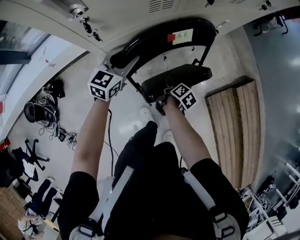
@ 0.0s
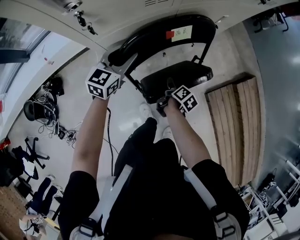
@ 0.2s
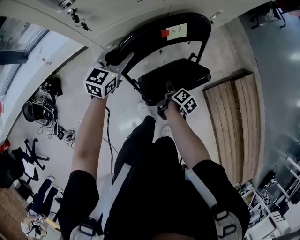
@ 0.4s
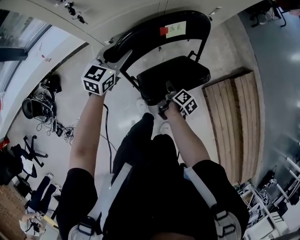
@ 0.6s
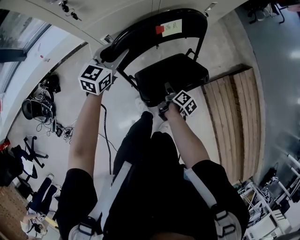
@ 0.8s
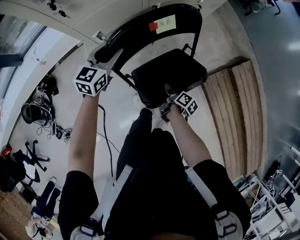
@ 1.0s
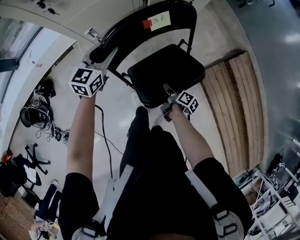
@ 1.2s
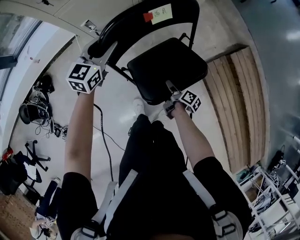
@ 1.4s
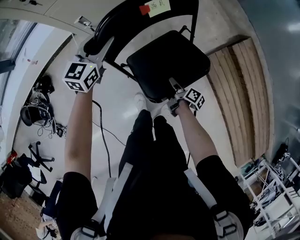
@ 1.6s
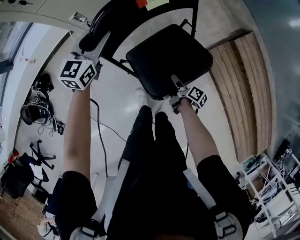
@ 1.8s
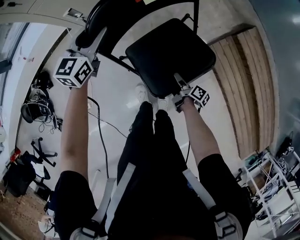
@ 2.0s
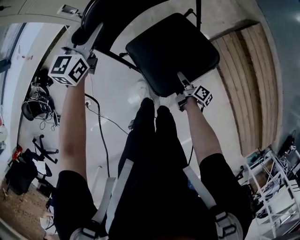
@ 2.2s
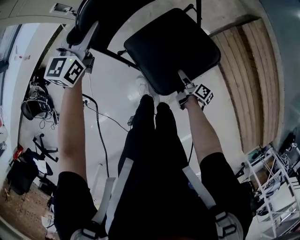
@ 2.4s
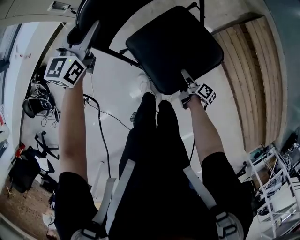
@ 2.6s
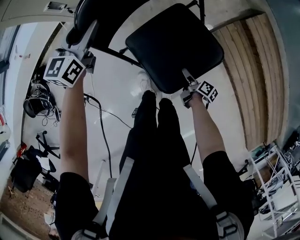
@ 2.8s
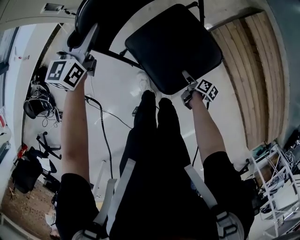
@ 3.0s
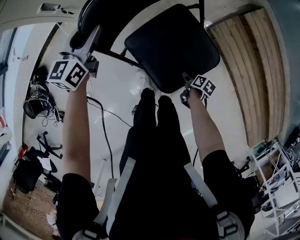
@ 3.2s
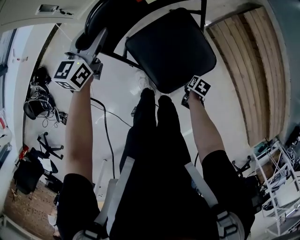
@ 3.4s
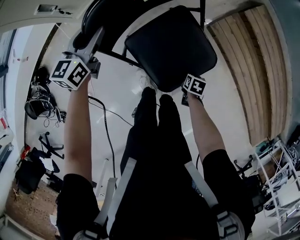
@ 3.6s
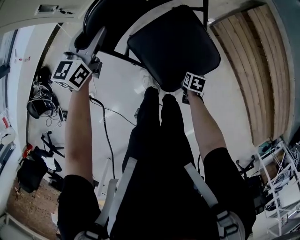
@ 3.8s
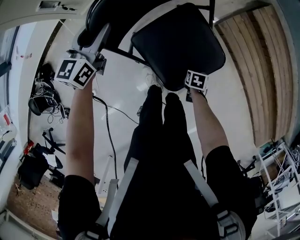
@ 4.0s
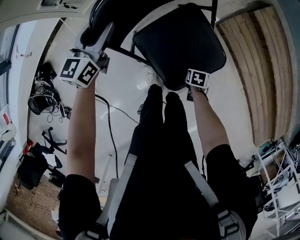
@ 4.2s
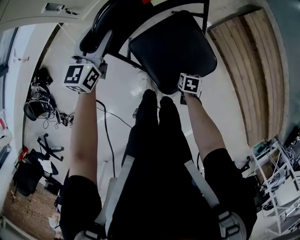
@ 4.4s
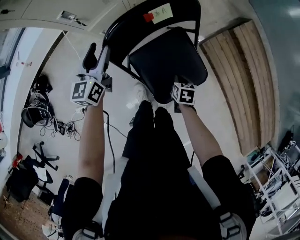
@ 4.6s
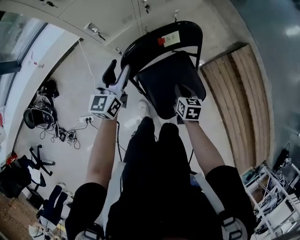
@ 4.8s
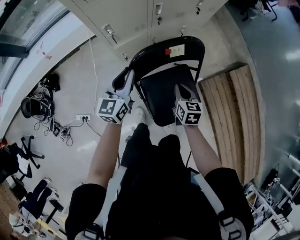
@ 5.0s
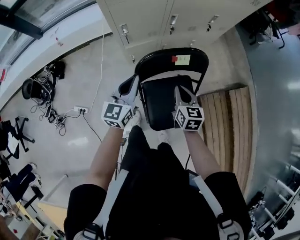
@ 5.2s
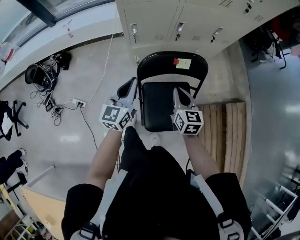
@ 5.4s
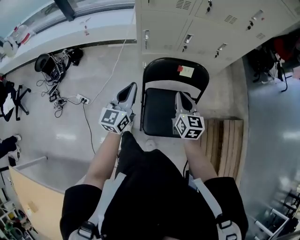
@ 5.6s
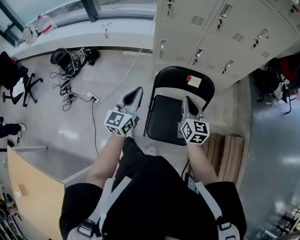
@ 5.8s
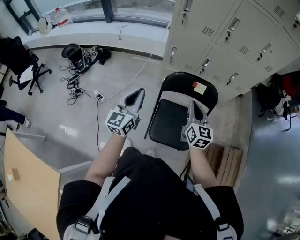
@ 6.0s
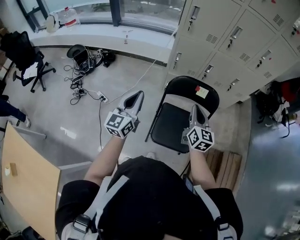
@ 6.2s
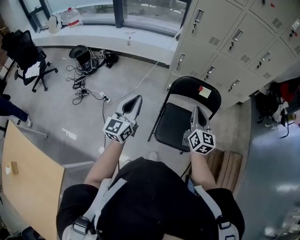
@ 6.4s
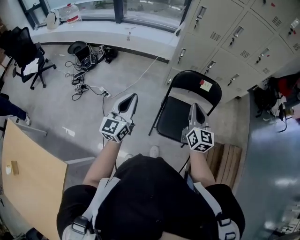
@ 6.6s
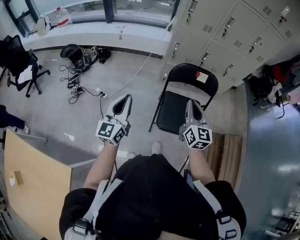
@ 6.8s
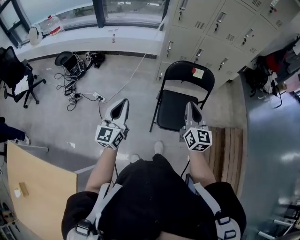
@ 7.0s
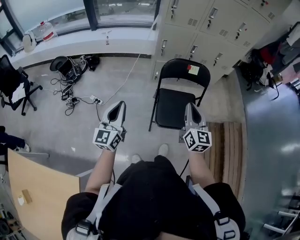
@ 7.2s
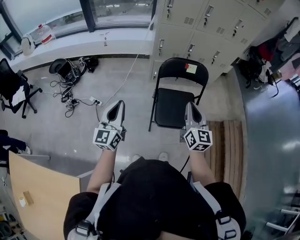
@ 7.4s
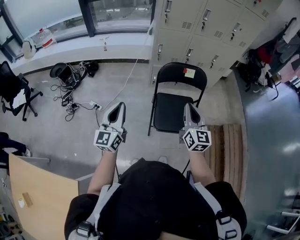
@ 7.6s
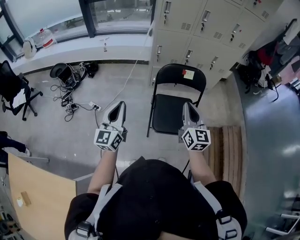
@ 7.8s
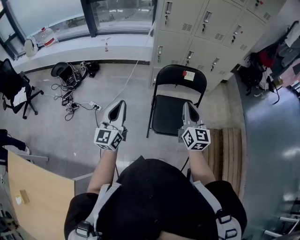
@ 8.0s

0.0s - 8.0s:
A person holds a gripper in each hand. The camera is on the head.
0.0s - 1.6s: The left gripper heads backward and to the right, covering roughly 10 cm. Meanwhile the right gripper moves backward and to the right, roughly 25 cm, and swivels approximately 20 degrees.
1.6s - 3.2s: The left gripper goes some 10 cm downward, while the right gripper moves backward, downward and to the right, some 25 cm, points its fingers approximately 30 degrees further downward, and opens up.
3.2s - 4.8s: The left gripper travels upward by some 10 cm. Meanwhile the right gripper goes approximately 25 cm upward, twists about 50 degrees counterclockwise, seen from behind, and closes its fingers.
4.8s - 6.4s: The right gripper heads upward, covering roughly 35 cm, and angles its fingers upward, by some 40 degrees. The left gripper shifts by roughly 40 cm, swivels approximately 40 degrees, and closes its fingers.
6.4s - 8.0s: Both grippers travel together backward, about 10 cm.

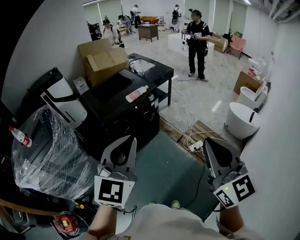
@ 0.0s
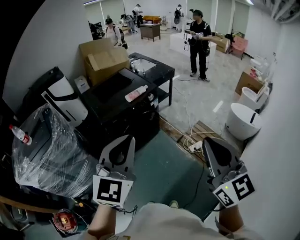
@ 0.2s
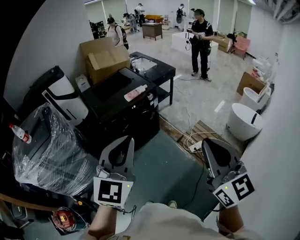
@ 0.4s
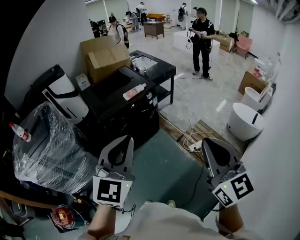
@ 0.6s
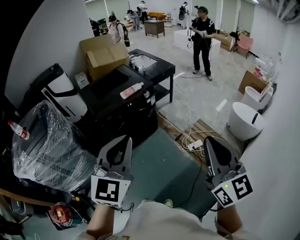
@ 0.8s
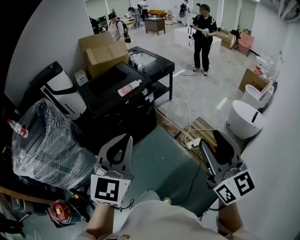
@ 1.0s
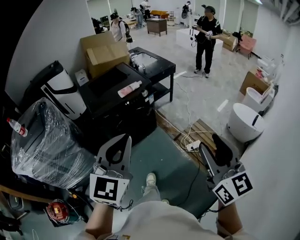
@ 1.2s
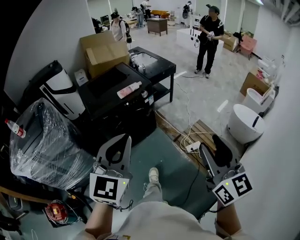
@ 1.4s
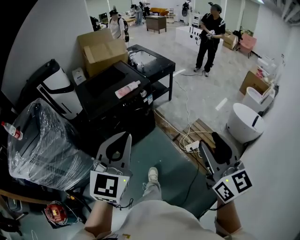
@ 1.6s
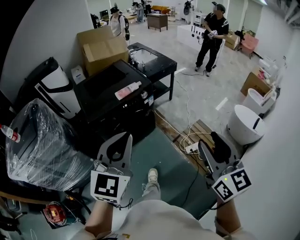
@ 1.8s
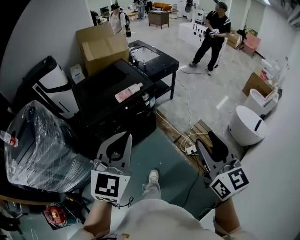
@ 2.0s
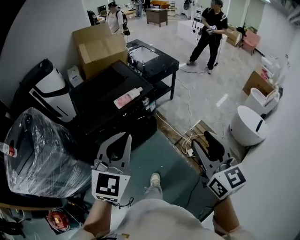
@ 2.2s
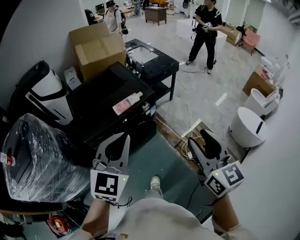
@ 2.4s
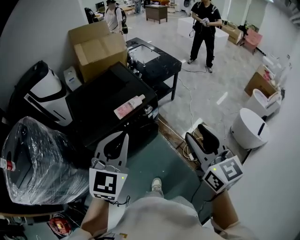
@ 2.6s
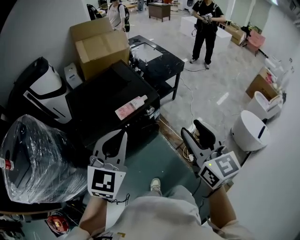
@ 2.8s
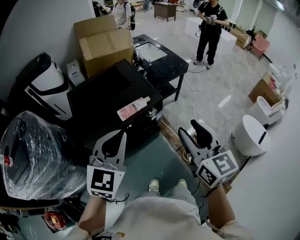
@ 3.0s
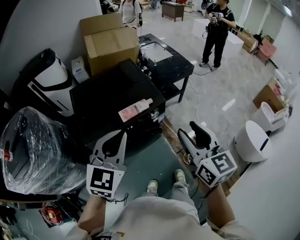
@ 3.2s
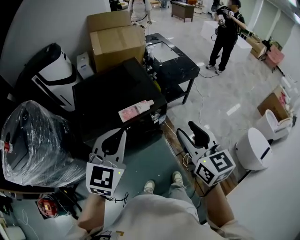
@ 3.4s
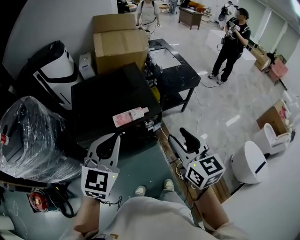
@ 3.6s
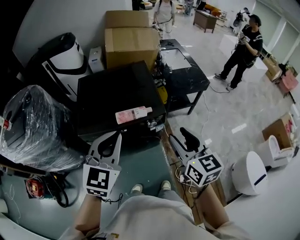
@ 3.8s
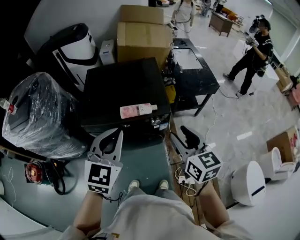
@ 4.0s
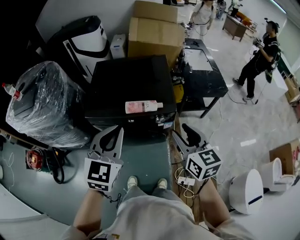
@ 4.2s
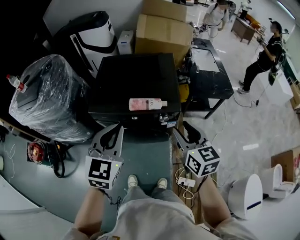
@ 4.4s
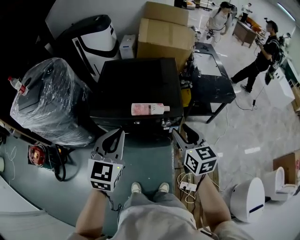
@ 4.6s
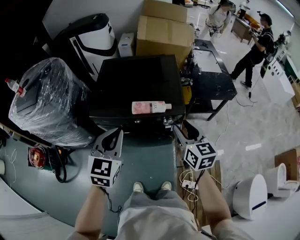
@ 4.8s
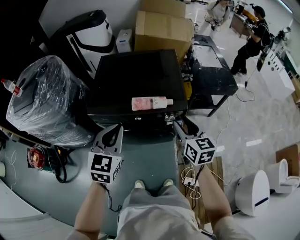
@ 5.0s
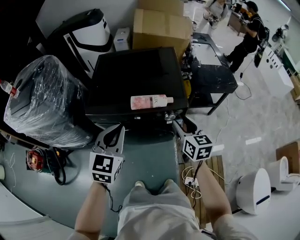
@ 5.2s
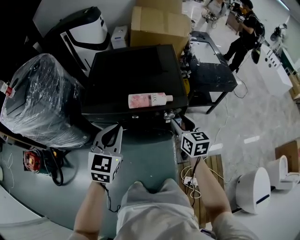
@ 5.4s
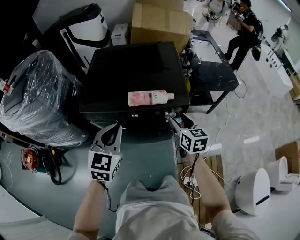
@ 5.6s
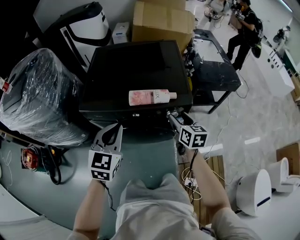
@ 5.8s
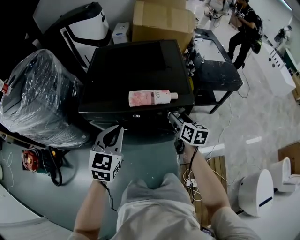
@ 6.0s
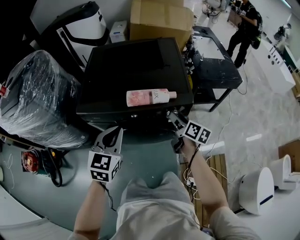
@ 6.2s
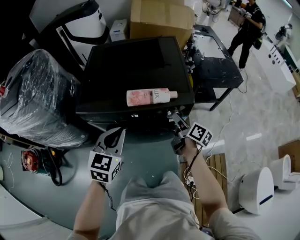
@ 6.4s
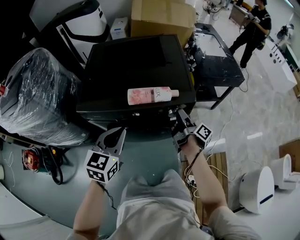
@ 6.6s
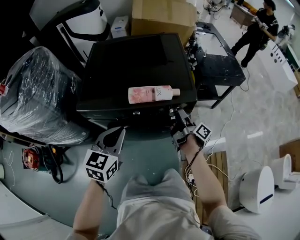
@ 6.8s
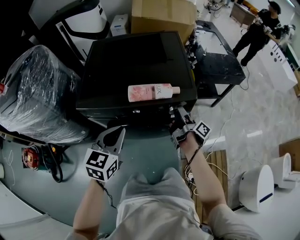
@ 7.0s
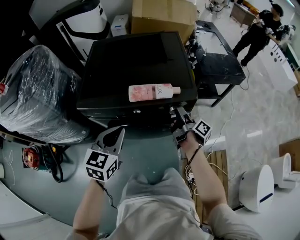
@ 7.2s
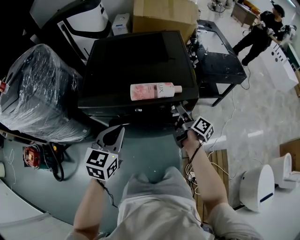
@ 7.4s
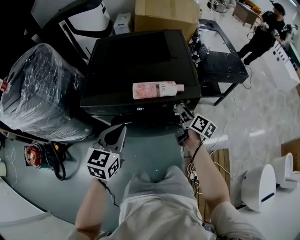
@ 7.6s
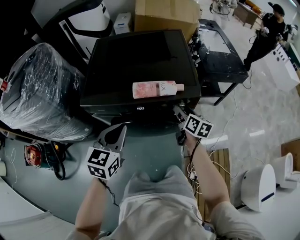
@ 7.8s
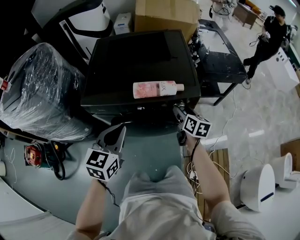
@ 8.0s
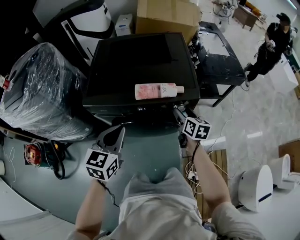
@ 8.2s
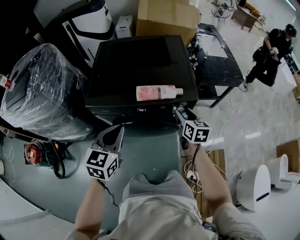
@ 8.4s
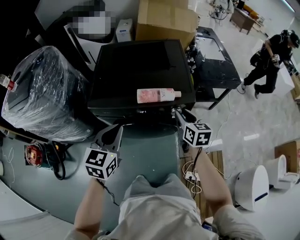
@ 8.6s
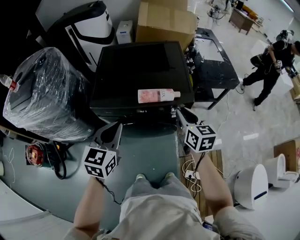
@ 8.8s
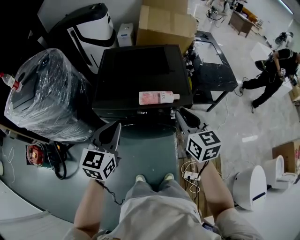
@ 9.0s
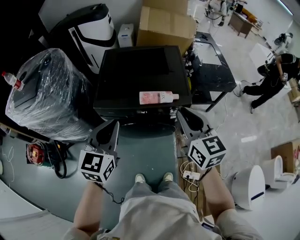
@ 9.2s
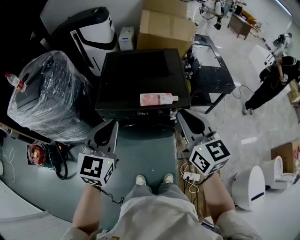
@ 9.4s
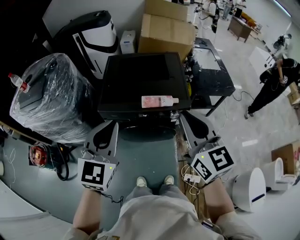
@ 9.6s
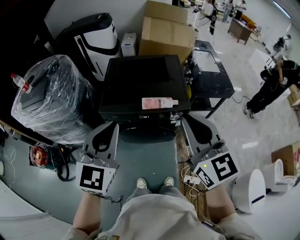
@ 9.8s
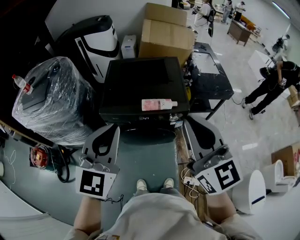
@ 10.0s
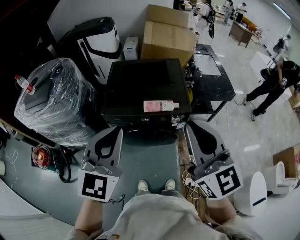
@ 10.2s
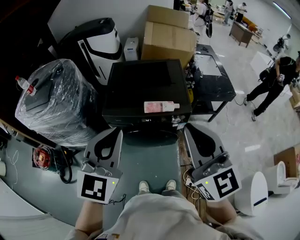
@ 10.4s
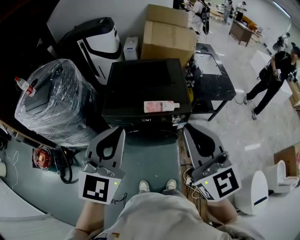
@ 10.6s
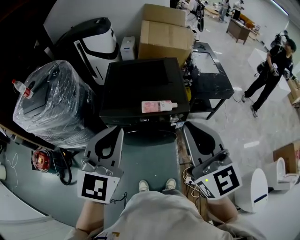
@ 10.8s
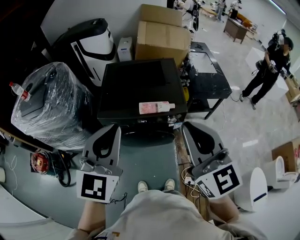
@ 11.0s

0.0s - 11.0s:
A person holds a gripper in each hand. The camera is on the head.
0.0s - 1.6s: The left gripper goes approximately 15 cm to the right and forward; the right gripper shifts about 20 cm to the right, forward and downward, and opens.
1.6s - 3.2s: The two grippers go some 35 cm forward.
3.2s - 4.8s: The left gripper is displaced downward by approximately 10 cm, and turns by some 40 degrees. The right gripper ends up approximately 20 cm from where it was, and turns by approximately 30 degrees.
4.8s - 6.2s: The left gripper heads downward, covering about 15 cm. The right gripper shifts some 25 cm downward and forward, and rolls clockwise, seen from behind, by some 40 degrees.
7.8s - 9.4s: The right gripper travels upward and backward by roughly 40 cm, changes its angle by approximately 40 degrees, and closes up. Meanwhile the left gripper is displaced upward by about 25 cm.
9.4s - 11.0s: The right gripper goes roughly 15 cm upward and backward. The left gripper travels upward by approximately 10 cm.

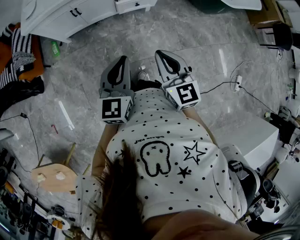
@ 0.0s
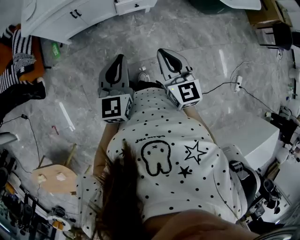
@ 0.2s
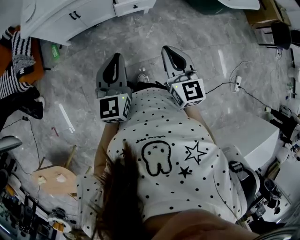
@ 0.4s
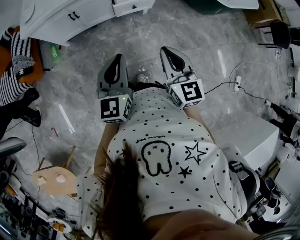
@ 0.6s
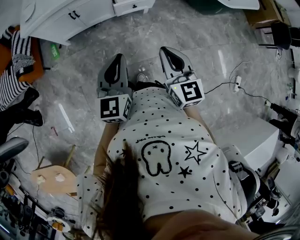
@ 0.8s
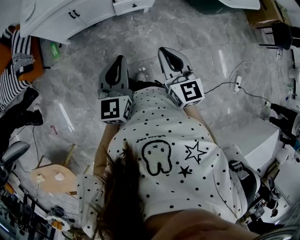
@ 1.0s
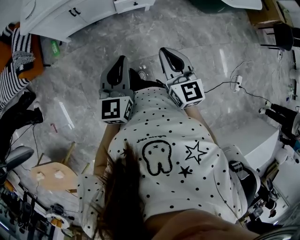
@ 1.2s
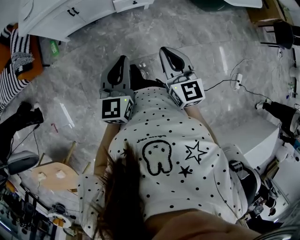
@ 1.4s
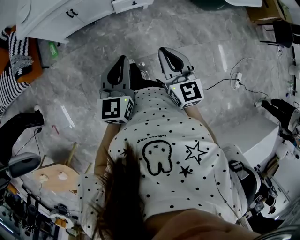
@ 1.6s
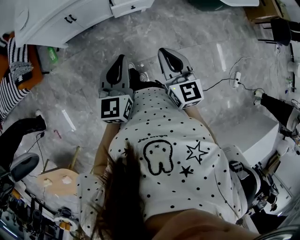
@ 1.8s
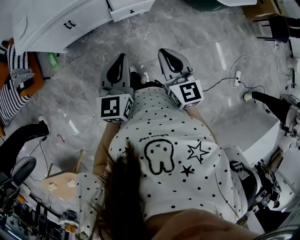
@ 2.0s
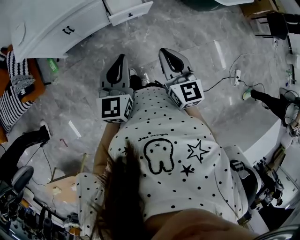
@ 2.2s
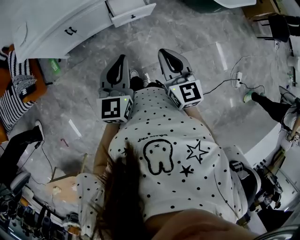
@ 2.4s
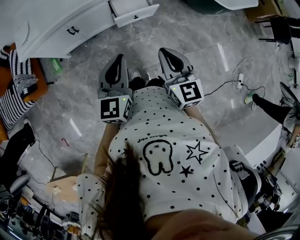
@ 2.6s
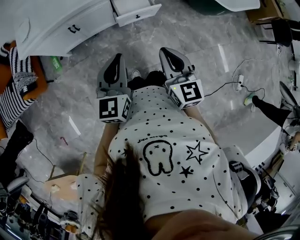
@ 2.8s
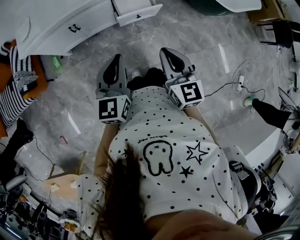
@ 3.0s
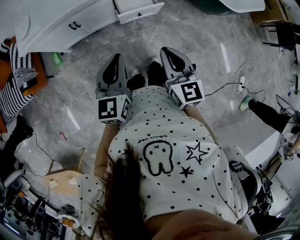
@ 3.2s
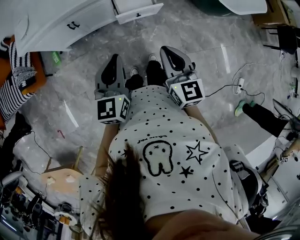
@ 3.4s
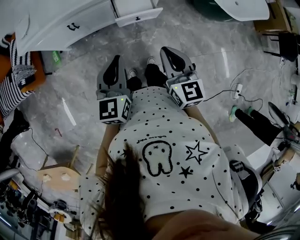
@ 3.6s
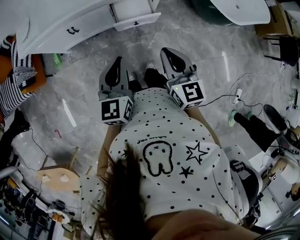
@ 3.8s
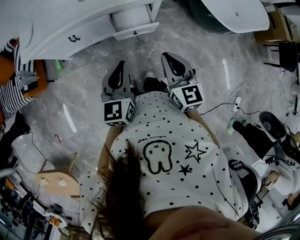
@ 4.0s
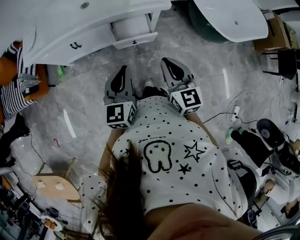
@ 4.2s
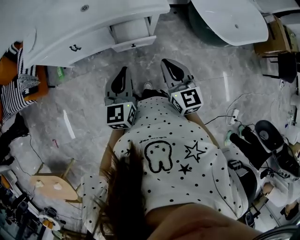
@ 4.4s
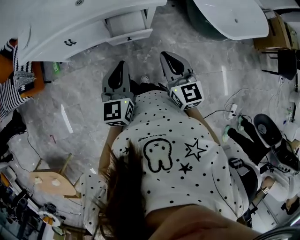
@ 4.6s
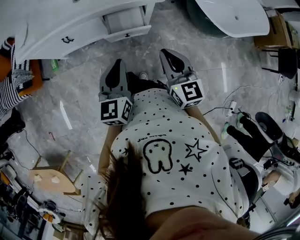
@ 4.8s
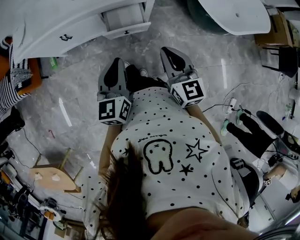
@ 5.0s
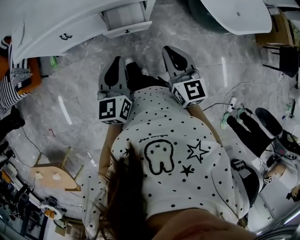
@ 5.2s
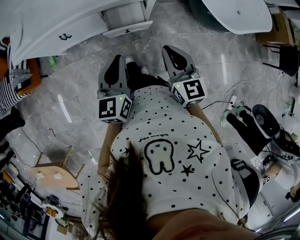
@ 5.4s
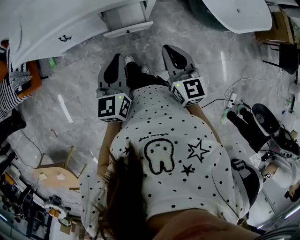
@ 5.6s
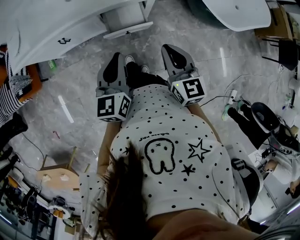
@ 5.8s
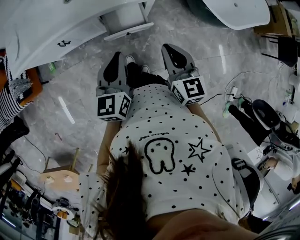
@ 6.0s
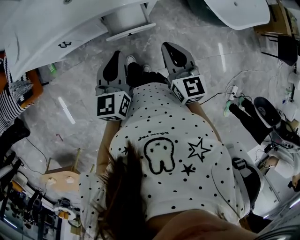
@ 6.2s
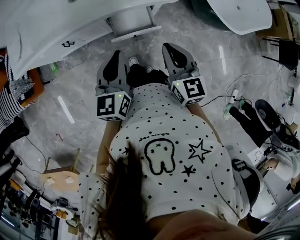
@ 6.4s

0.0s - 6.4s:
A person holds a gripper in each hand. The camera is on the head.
0.0s - 1.6s: There are only small adjustments of the grippers.
1.6s - 3.2s: Both grippers move forward, about 10 cm.
3.2s - 4.8s: Both grippers travel together to the right and forward, roughly 15 cm.
4.8s - 6.4s: The grippers both shift forward and to the left by approximately 10 cm.
